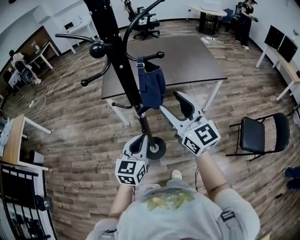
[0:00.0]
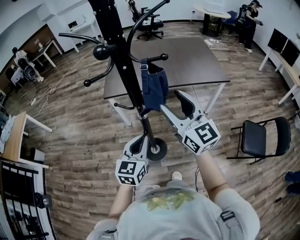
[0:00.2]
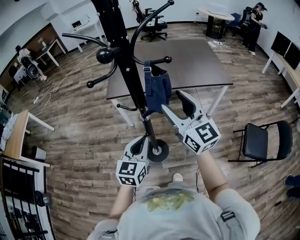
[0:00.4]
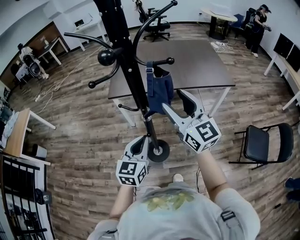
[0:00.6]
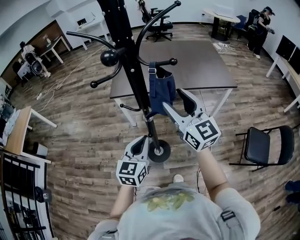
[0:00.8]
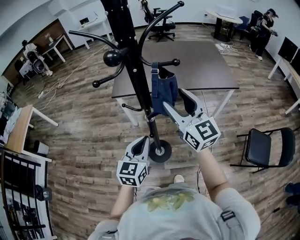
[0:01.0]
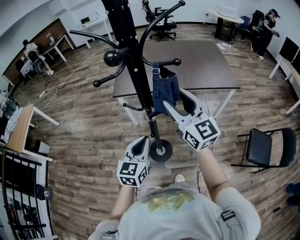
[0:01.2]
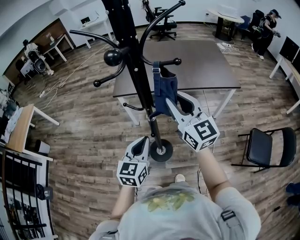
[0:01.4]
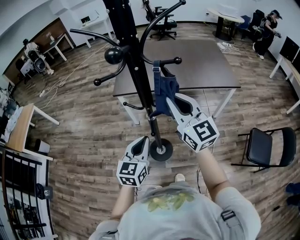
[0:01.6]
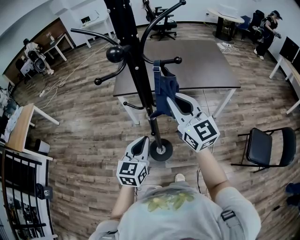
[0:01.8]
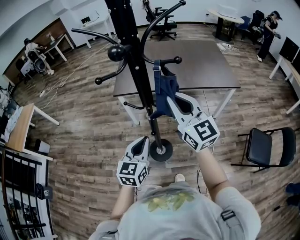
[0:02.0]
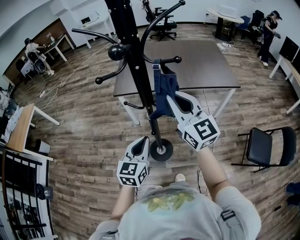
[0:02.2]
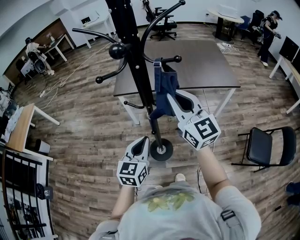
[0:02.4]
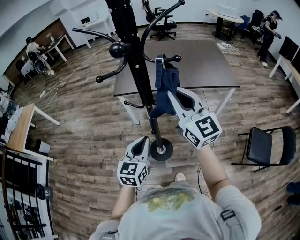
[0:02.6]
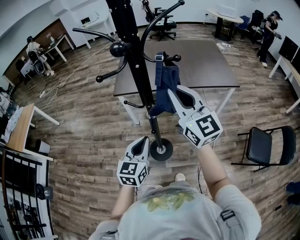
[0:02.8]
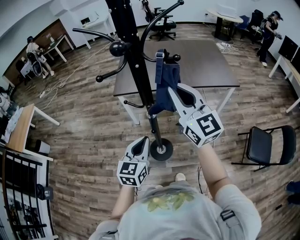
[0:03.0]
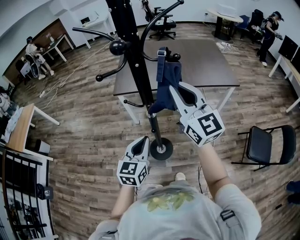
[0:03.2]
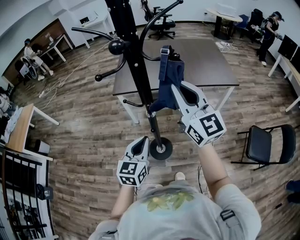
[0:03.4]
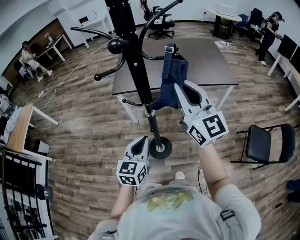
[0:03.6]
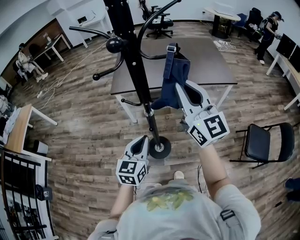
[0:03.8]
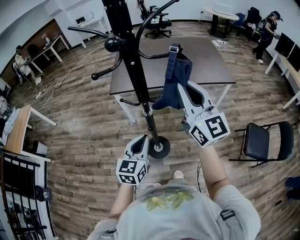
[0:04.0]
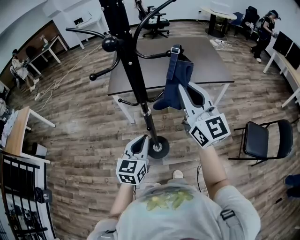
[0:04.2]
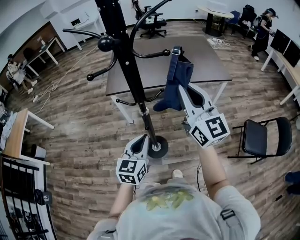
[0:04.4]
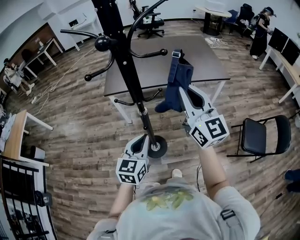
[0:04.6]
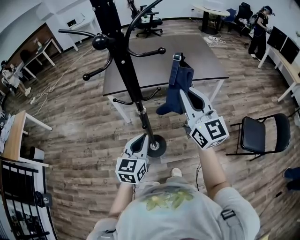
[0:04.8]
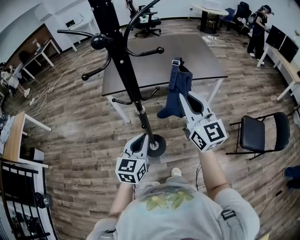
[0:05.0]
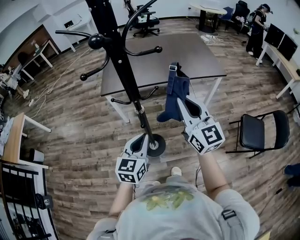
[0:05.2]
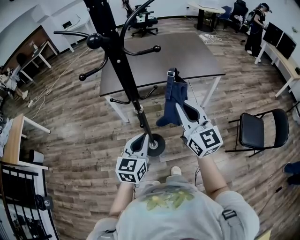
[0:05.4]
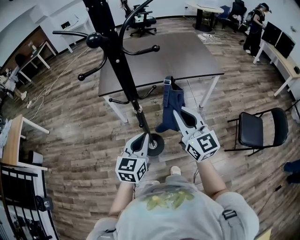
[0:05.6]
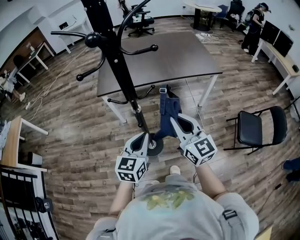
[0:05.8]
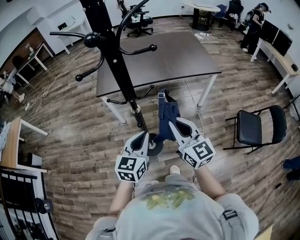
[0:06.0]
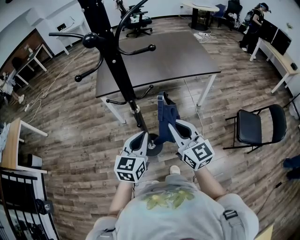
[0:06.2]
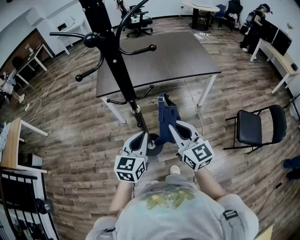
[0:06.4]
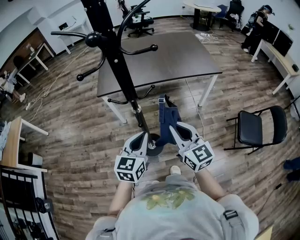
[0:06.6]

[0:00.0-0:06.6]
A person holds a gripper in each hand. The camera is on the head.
0:00.0 to 0:01.6: The right gripper changes place by approximately 5 cm, and closes up.
0:01.6 to 0:03.2: The right gripper shifts by about 5 cm.
0:03.2 to 0:05.0: The right gripper moves to the right and downward, roughly 10 cm.
0:05.0 to 0:06.6: The right gripper moves downward and backward, roughly 15 cm.

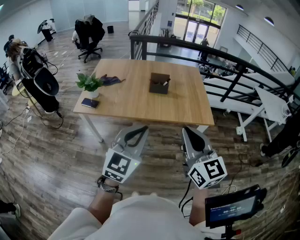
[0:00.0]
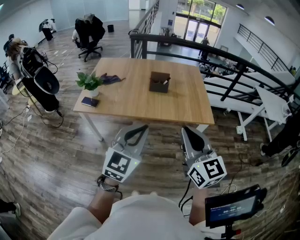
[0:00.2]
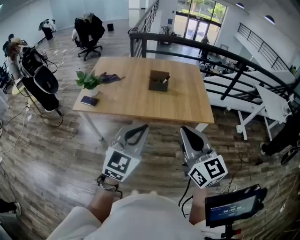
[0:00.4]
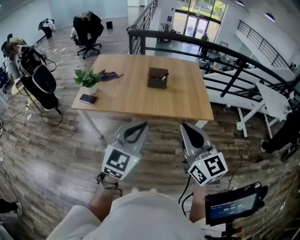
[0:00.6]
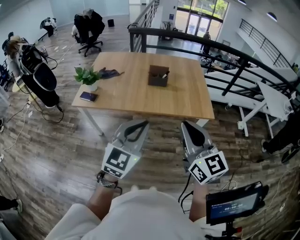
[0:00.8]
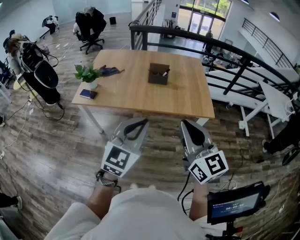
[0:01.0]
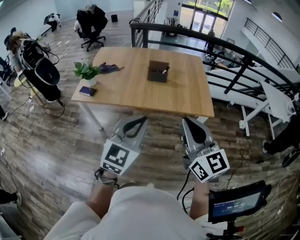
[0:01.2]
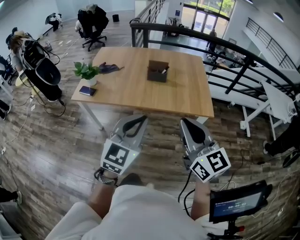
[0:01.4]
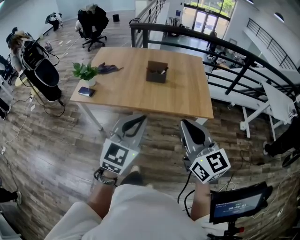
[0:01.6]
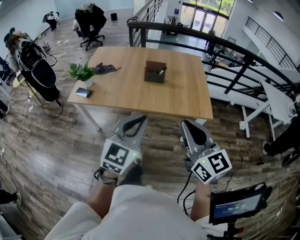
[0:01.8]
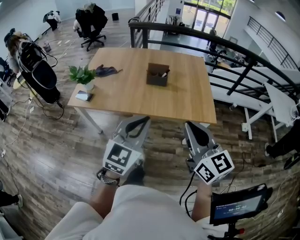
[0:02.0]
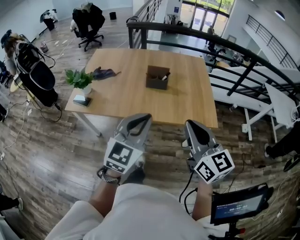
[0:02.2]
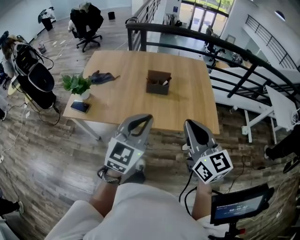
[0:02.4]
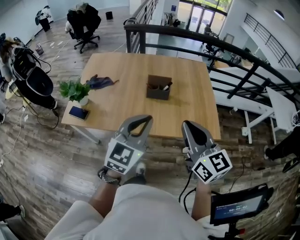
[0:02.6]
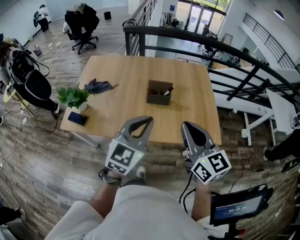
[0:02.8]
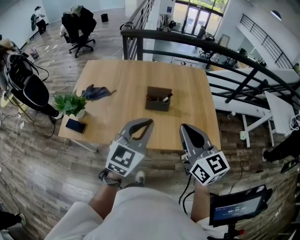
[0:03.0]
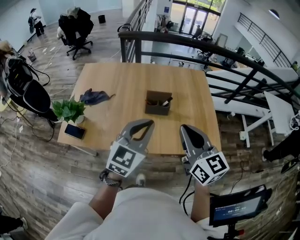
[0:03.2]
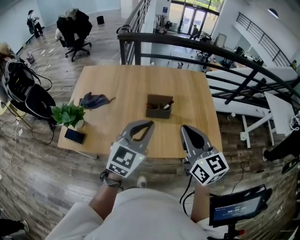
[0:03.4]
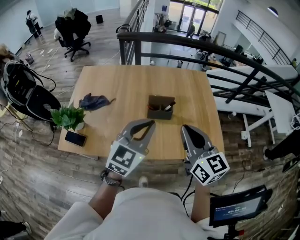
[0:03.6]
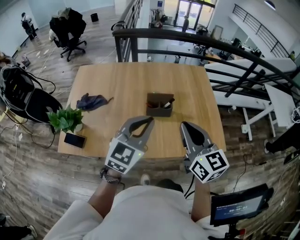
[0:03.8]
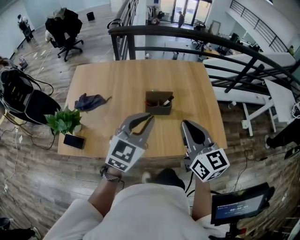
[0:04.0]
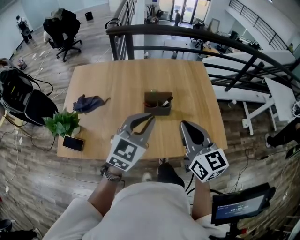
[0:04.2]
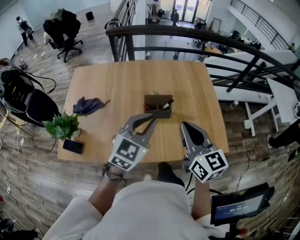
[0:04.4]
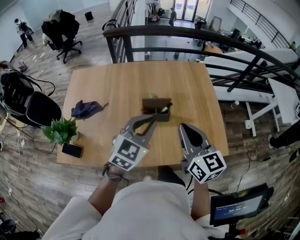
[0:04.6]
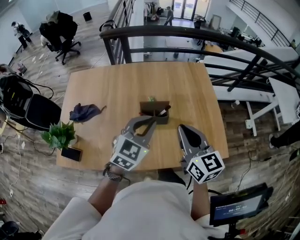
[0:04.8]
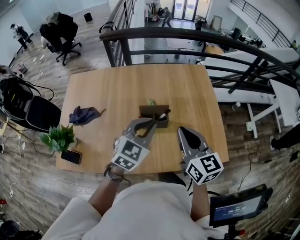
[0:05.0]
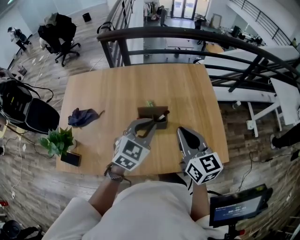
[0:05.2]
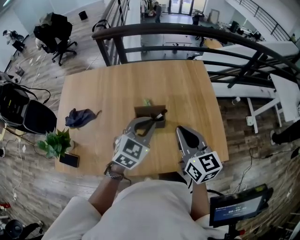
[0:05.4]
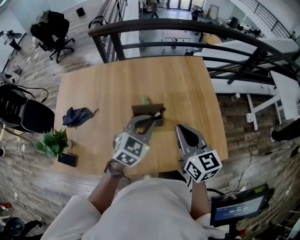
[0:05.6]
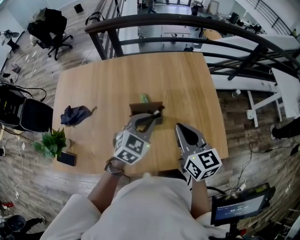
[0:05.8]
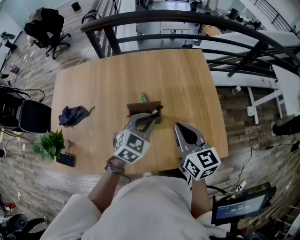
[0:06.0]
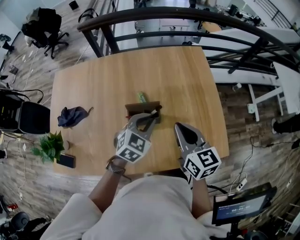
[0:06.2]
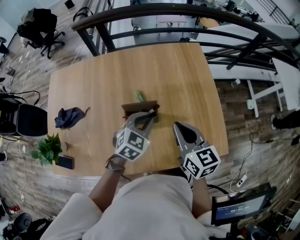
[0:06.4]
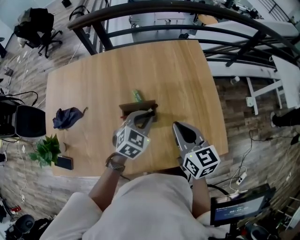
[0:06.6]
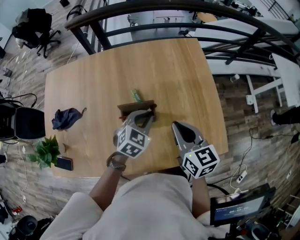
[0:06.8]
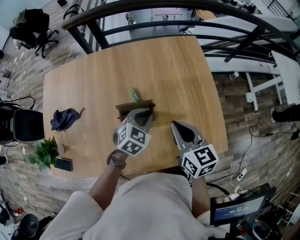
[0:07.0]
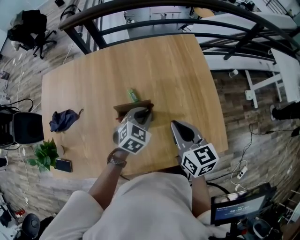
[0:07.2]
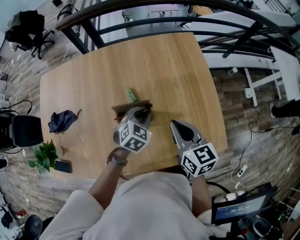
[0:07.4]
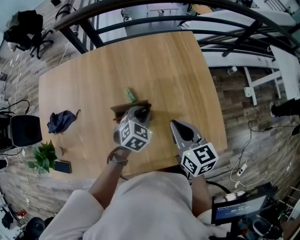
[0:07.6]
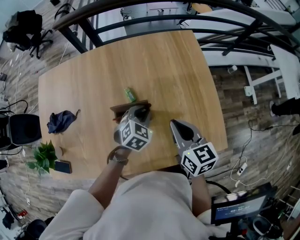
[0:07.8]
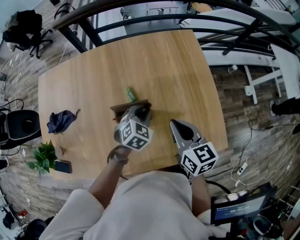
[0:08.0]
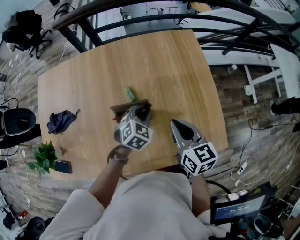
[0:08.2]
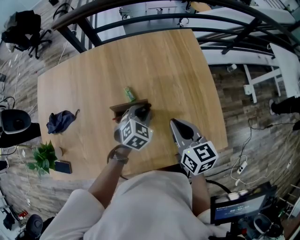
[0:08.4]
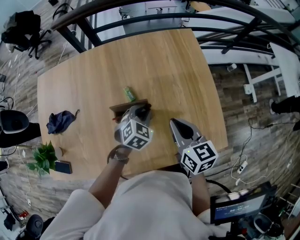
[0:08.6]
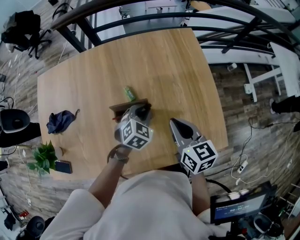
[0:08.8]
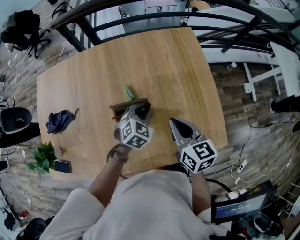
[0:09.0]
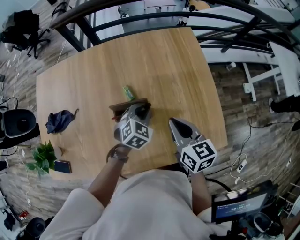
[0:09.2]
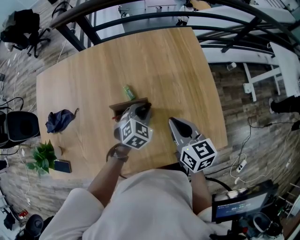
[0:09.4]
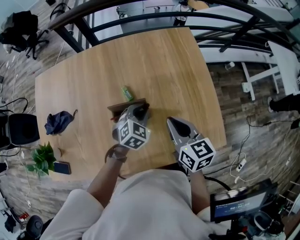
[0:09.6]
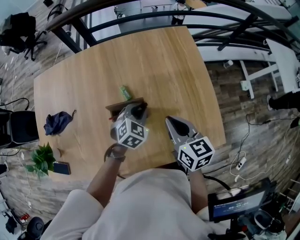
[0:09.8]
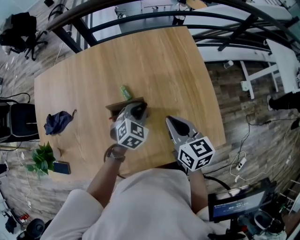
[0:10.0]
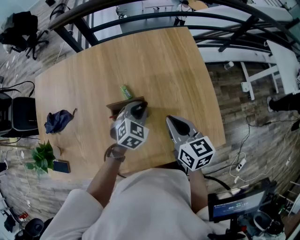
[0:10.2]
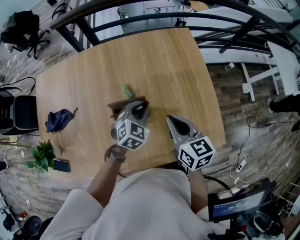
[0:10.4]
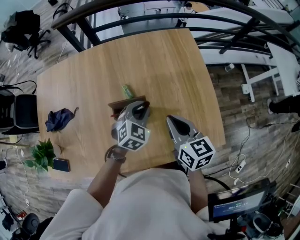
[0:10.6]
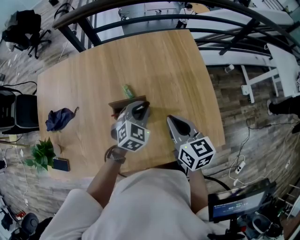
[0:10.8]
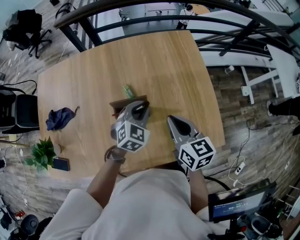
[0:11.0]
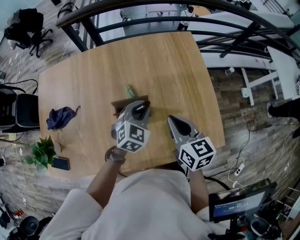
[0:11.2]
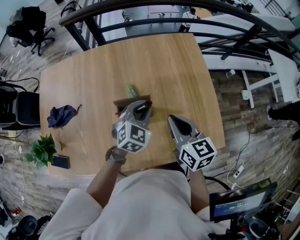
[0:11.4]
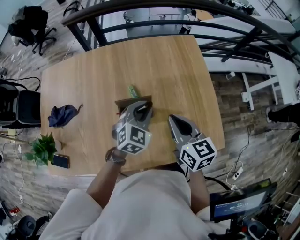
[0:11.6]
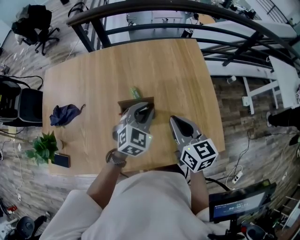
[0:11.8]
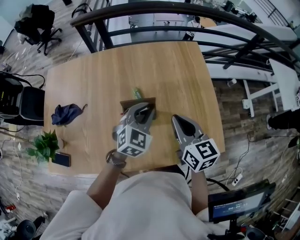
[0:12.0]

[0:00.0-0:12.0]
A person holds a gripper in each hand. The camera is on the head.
0:00.0 to 0:01.6: The left gripper changes place by approximately 5 cm.
0:01.6 to 0:03.0: Both grippers travel together forward, roughly 25 cm.
0:03.0 to 0:04.4: The grippers both shift forward by approximately 10 cm.
0:04.4 to 0:06.0: The right gripper moves forward and downward, approximately 10 cm, while the left gripper moves downward and forward, some 15 cm.
0:06.0 to 0:07.6: The right gripper ends up some 5 cm from where it was, while the left gripper goes some 10 cm downward.
0:07.6 to 0:09.0: Both grippers stay about where they are.
0:09.0 to 0:10.4: There are only small adjustments of the grippers.
0:10.4 to 0:12.0: The left gripper goes some 10 cm upward.

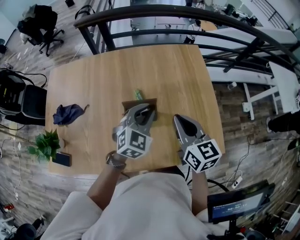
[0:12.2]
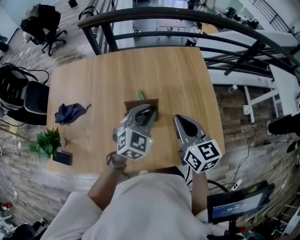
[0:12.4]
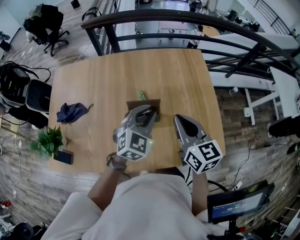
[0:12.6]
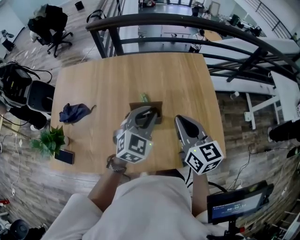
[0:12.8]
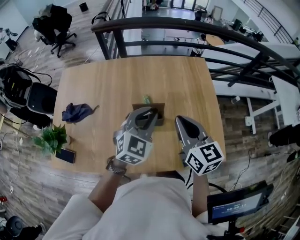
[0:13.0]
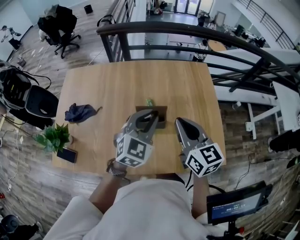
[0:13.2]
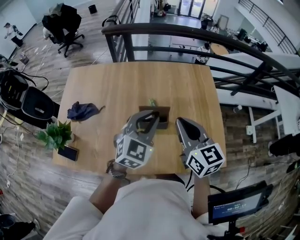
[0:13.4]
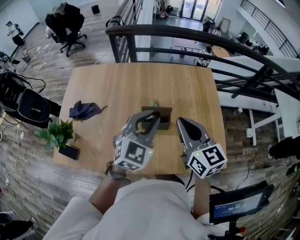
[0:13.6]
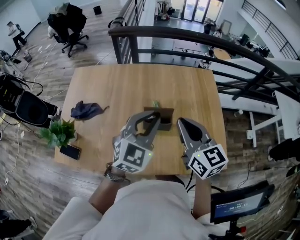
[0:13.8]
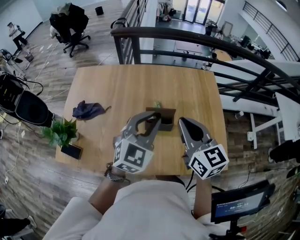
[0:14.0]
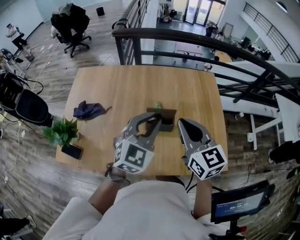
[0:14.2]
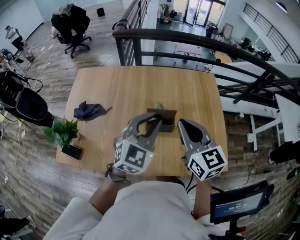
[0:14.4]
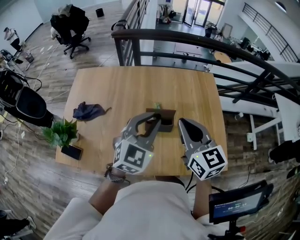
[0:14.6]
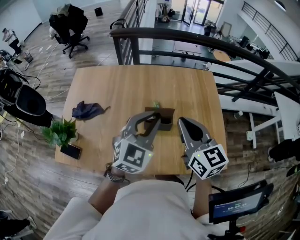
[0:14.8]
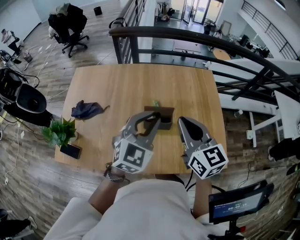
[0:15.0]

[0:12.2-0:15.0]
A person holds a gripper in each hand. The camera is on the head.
0:12.2 to 0:13.6: The left gripper shifts some 10 cm upward. Meanwhile the right gripper heads upward and to the left, covering some 10 cm.
0:13.6 to 0:15.0: The grippers stay close to where they were, moving slightly.

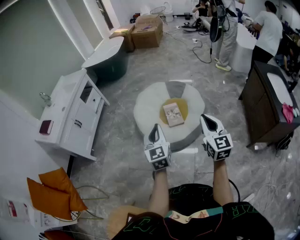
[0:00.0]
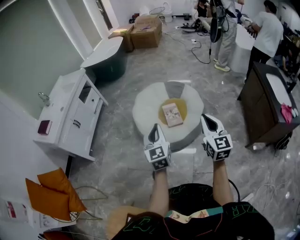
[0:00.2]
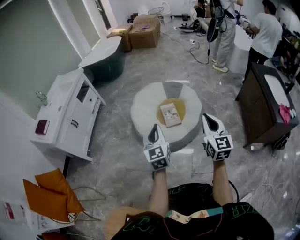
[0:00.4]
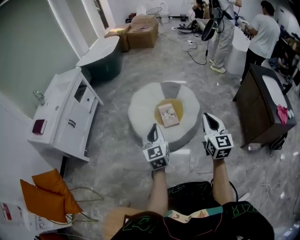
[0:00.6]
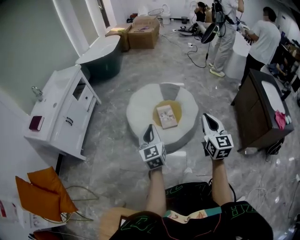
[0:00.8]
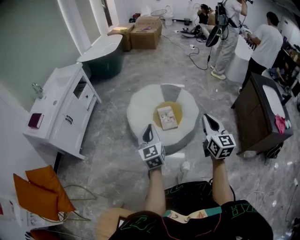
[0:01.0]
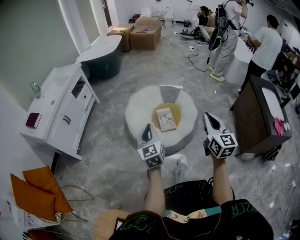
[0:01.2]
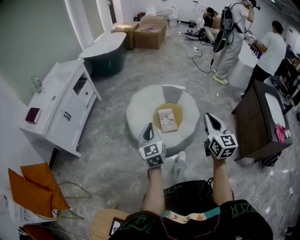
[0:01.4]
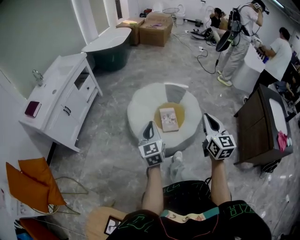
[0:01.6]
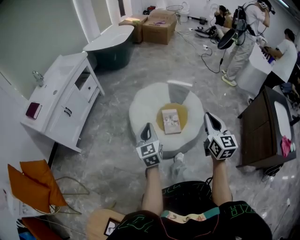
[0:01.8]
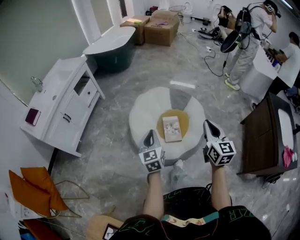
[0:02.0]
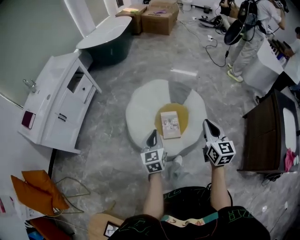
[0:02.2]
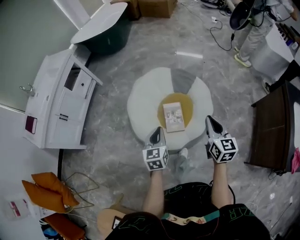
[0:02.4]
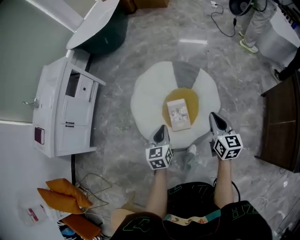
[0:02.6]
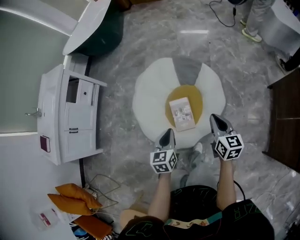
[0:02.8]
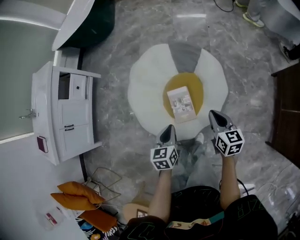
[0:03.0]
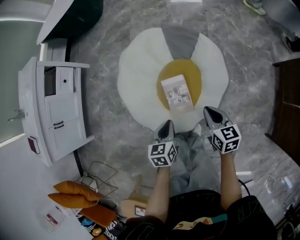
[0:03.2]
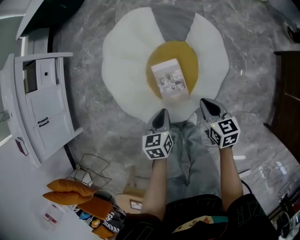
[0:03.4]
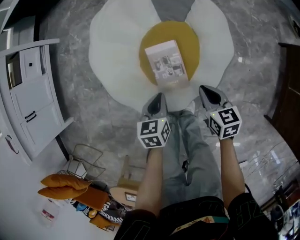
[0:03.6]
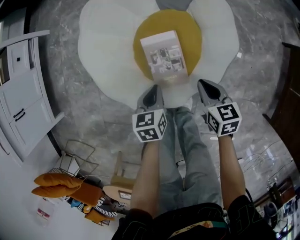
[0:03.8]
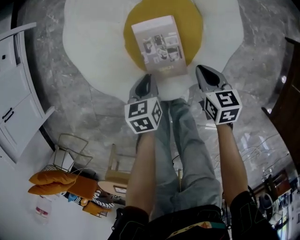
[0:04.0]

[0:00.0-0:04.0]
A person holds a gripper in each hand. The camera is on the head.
0:00.0 to 0:01.4: Both grippers travel together forward, about 5 cm.
0:01.4 to 0:02.6: The left gripper travels forward, downward and to the right by approximately 35 cm, and rotates roughly 20 degrees, while the right gripper moves forward and downward, some 35 cm, and rotates some 20 degrees.
0:02.6 to 0:04.0: The two grippers go some 40 cm downward. The right gripper changes its angle by about 30 degrees; the left gripper changes its angle by approximately 30 degrees.
